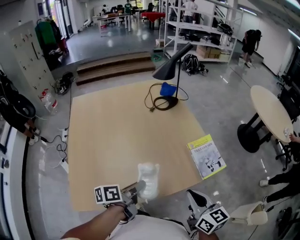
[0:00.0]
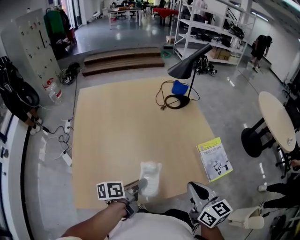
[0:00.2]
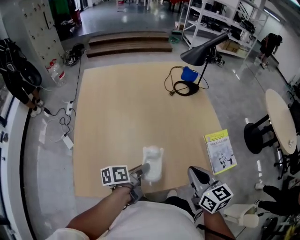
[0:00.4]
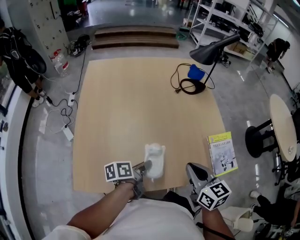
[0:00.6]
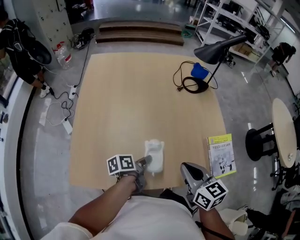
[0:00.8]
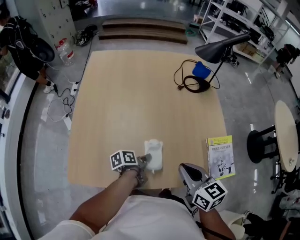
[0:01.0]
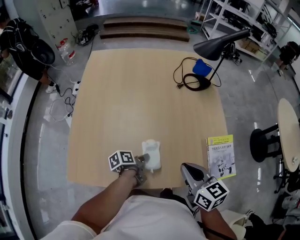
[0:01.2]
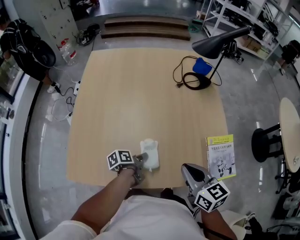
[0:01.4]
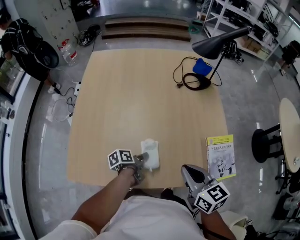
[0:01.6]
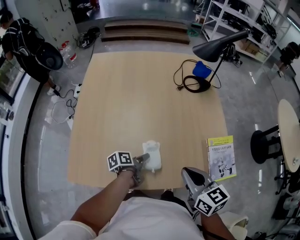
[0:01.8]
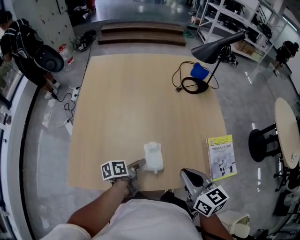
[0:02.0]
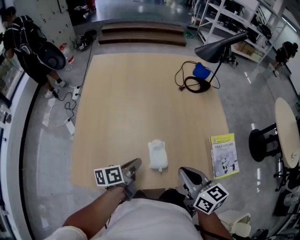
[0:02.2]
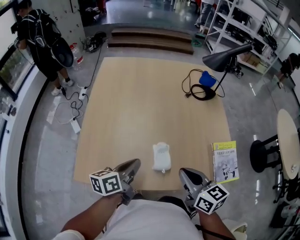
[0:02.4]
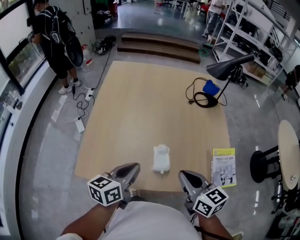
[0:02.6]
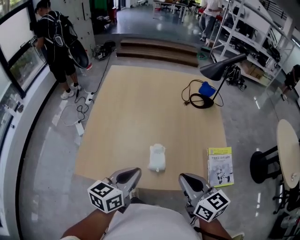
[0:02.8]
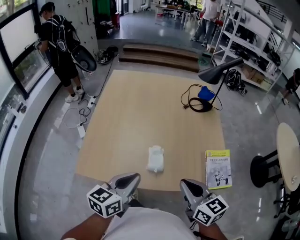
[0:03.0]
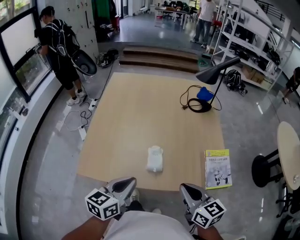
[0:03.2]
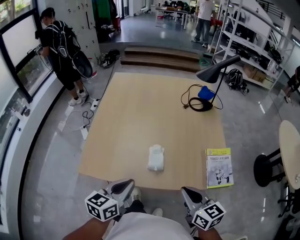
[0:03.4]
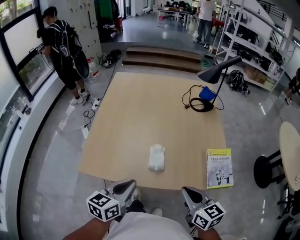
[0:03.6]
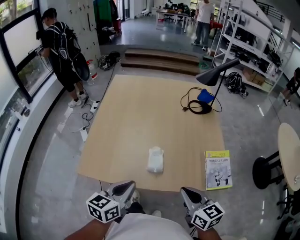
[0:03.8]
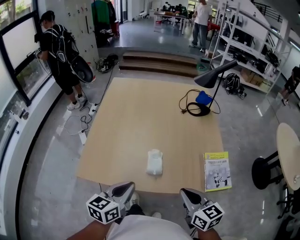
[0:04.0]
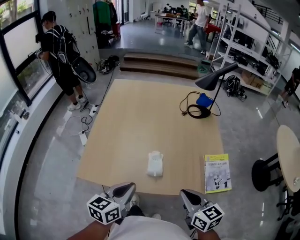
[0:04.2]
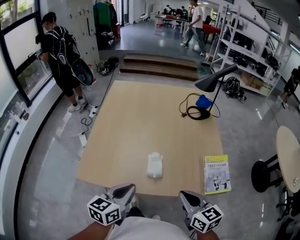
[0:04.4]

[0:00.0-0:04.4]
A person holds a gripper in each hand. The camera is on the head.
0:00.0 to 0:01.4: The right gripper heads forward and to the left, covering roughly 10 cm, and swivels some 30 degrees, while the left gripper is displaced downward by approximately 15 cm, and swivels roughly 30 degrees.
0:01.4 to 0:03.0: The left gripper moves upward and backward, some 25 cm, twists about 60 degrees clockwise, seen from behind, and closes up. Meanwhile the right gripper is displaced backward and upward by approximately 10 cm.
0:03.0 to 0:04.4: The grippers move only a little.

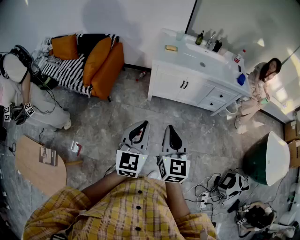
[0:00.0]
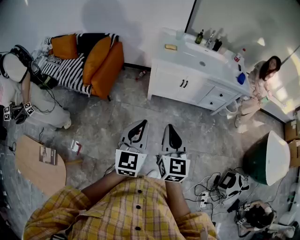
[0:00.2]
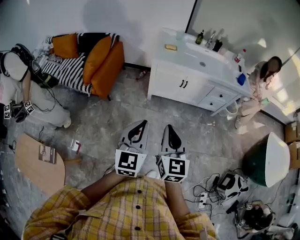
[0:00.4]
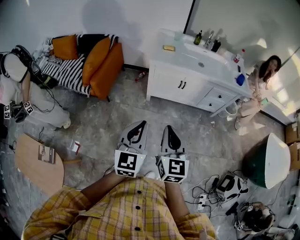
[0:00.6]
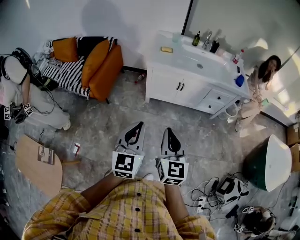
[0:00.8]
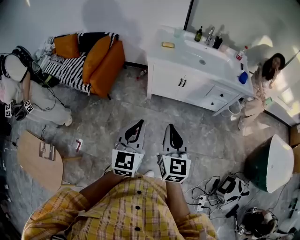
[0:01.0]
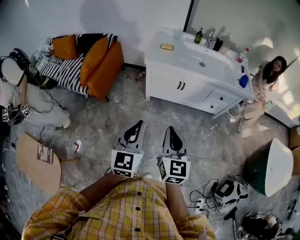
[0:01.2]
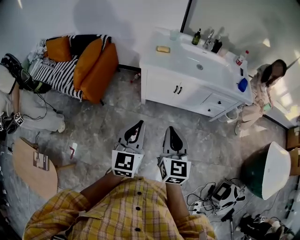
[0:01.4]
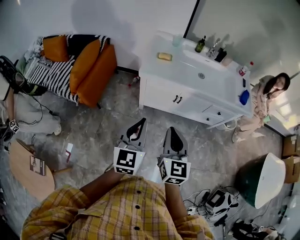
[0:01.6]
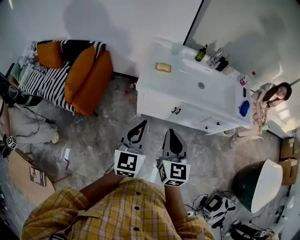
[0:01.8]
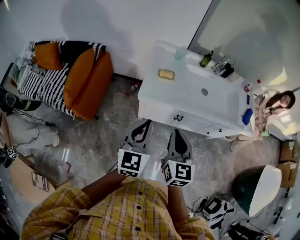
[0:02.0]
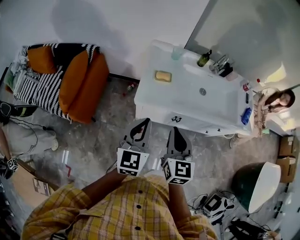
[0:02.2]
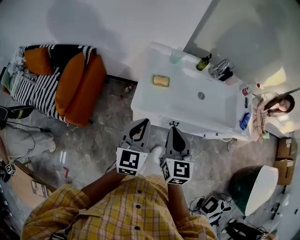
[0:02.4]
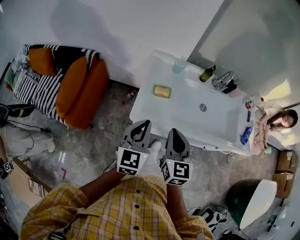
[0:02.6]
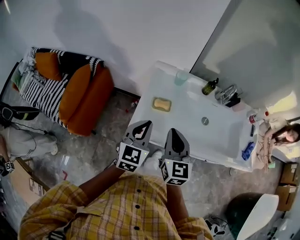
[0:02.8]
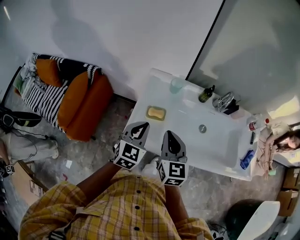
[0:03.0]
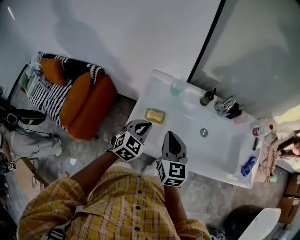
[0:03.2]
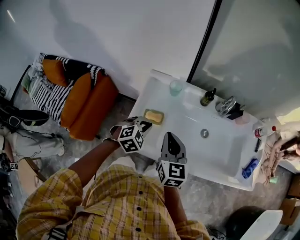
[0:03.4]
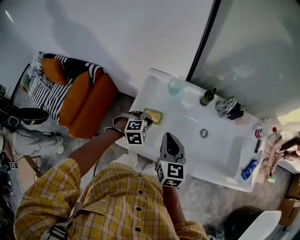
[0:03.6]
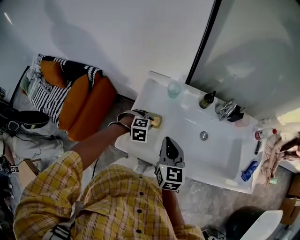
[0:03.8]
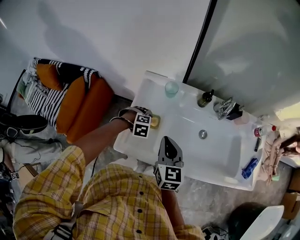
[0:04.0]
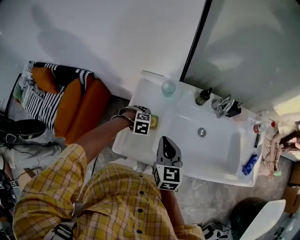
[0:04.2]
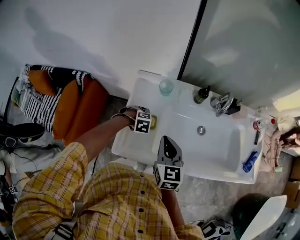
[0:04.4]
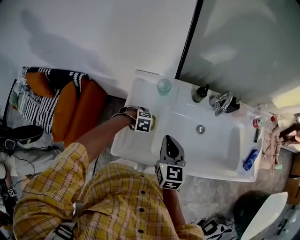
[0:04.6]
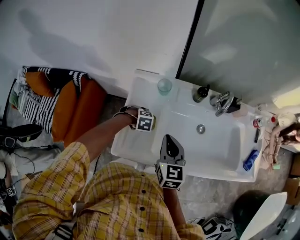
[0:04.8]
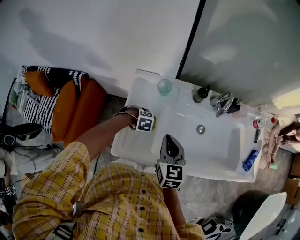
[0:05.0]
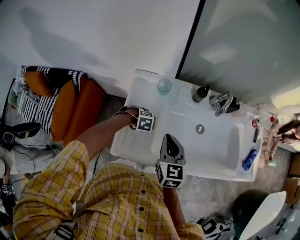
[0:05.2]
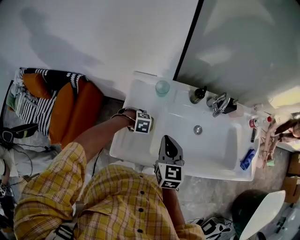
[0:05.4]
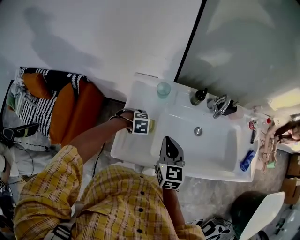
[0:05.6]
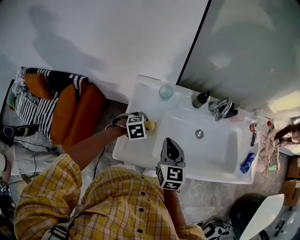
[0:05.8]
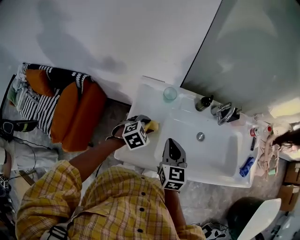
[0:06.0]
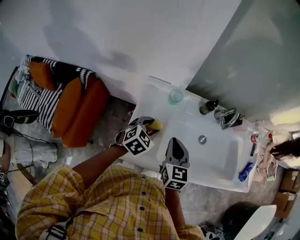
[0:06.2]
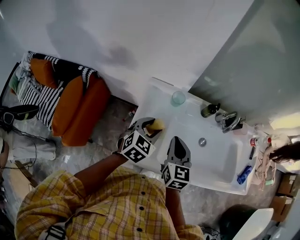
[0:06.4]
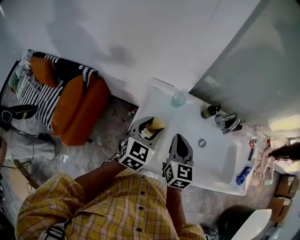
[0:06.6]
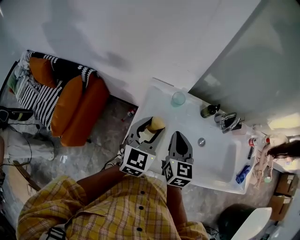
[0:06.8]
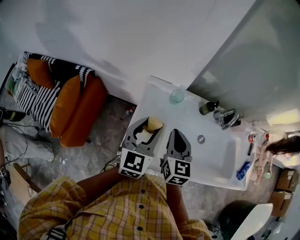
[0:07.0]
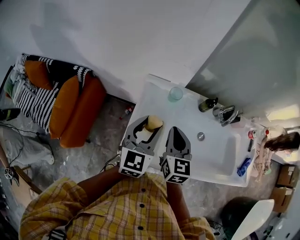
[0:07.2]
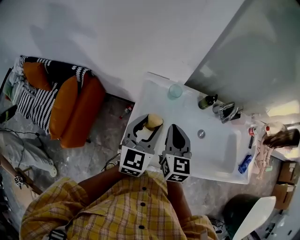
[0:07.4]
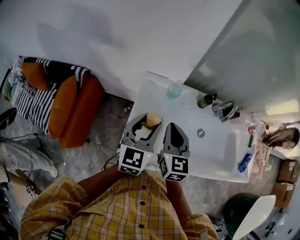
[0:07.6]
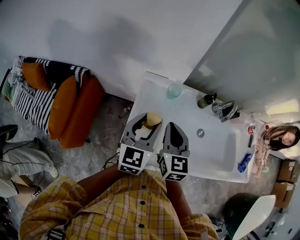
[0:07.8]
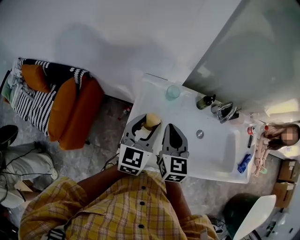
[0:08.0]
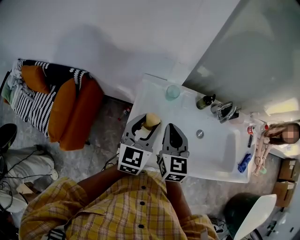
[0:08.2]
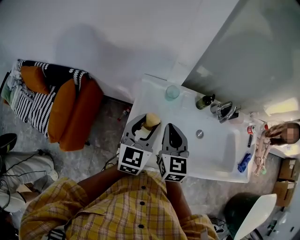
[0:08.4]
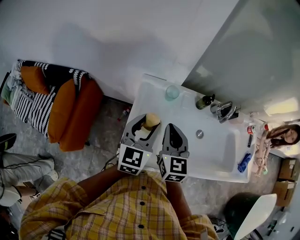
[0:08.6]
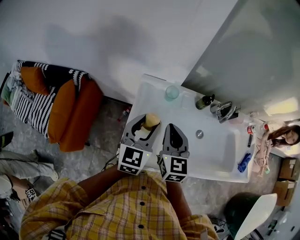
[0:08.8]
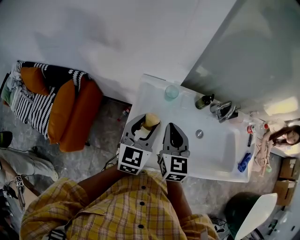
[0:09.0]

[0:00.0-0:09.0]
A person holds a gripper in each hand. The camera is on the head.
0:00.0 to 0:01.6: Both grippers move forward, approximately 25 cm.
0:01.6 to 0:03.0: Both grippers are carried forward, roughly 50 cm. The left gripper turns by about 20 degrees.
0:03.0 to 0:04.4: The right gripper shifts by roughly 10 cm; the left gripper heads downward, covering about 25 cm, points its fingers about 60 degrees further downward, and opens up.
0:04.4 to 0:06.0: The left gripper moves upward, some 10 cm, and rotates roughly 40 degrees.
0:06.0 to 0:07.6: The right gripper travels upward and to the left by roughly 10 cm; the left gripper heads upward, covering approximately 20 cm, and tilts its fingers some 40 degrees upward.
0:07.6 to 0:09.0: Neither gripper changes place.
